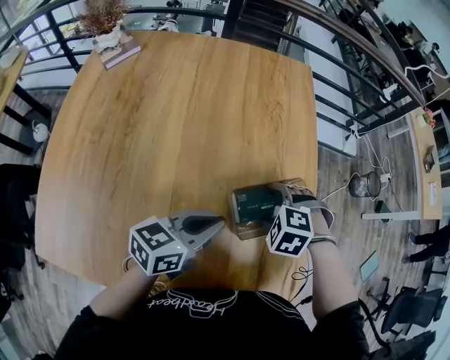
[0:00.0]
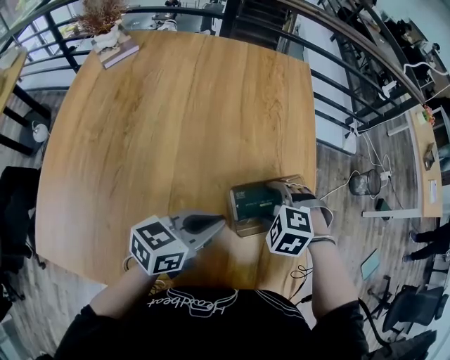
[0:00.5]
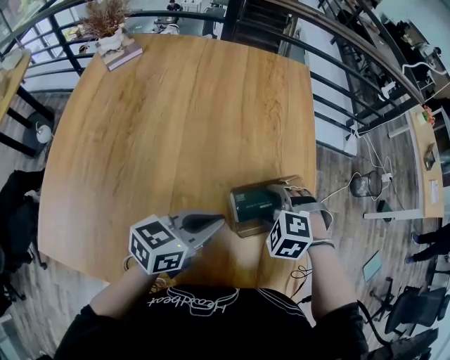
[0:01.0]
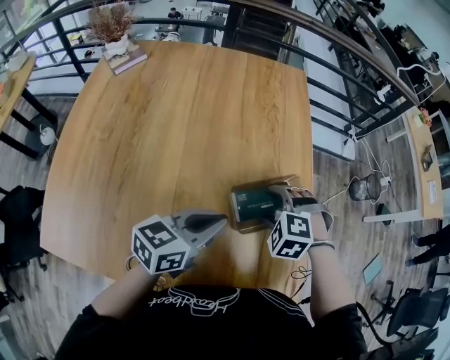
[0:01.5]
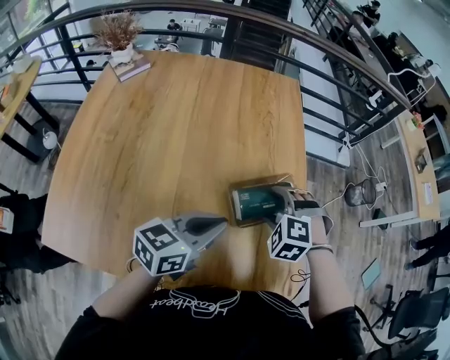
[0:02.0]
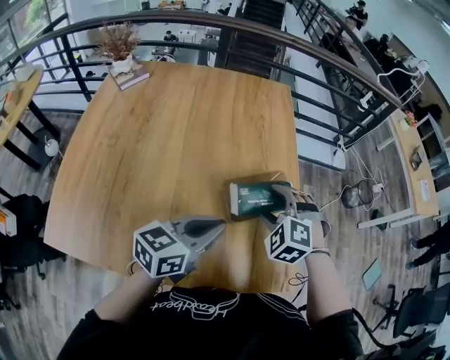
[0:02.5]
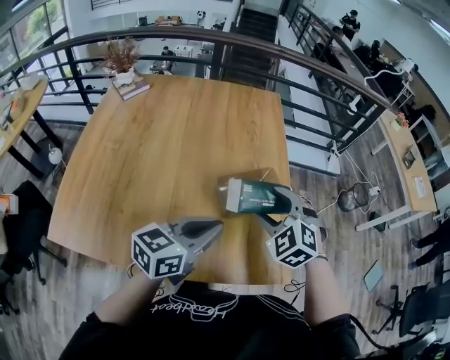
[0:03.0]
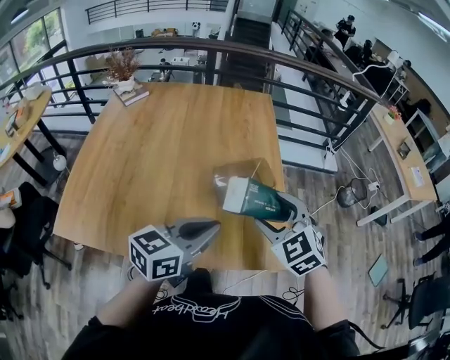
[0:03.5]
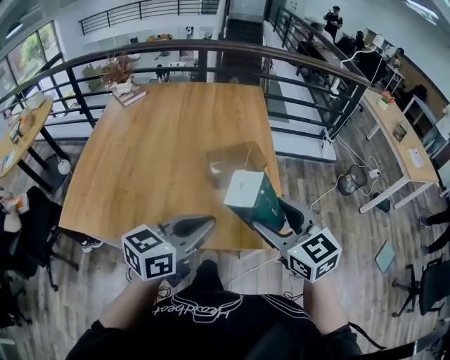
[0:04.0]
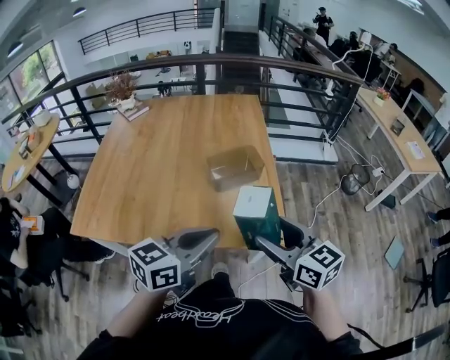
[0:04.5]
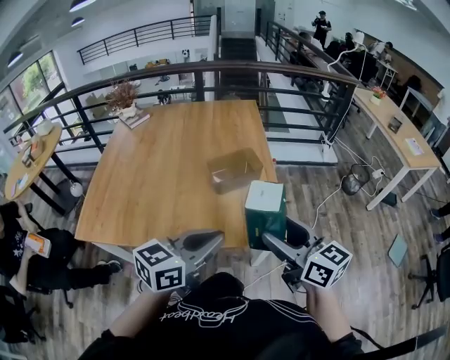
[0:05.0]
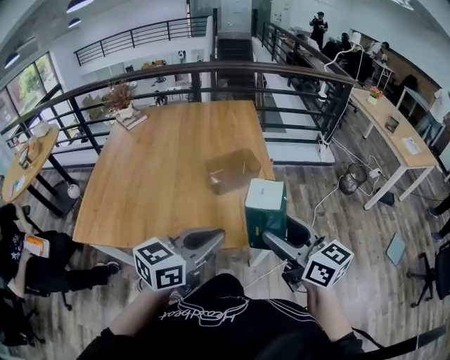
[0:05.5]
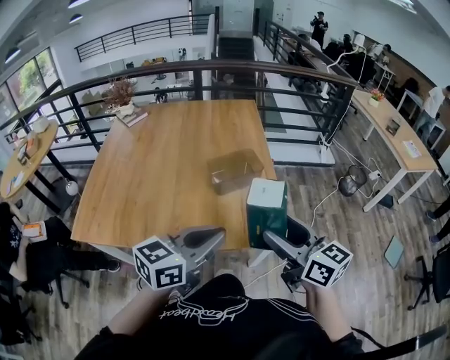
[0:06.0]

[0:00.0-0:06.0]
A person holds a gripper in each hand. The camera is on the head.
0:00.0 to 0:02.0: The left gripper ends up some 10 cm from where it was. The right gripper is displaced upward by roughly 5 cm.
0:02.0 to 0:04.0: The right gripper heads backward, upward and to the right, covering approximately 35 cm, and angles its fingers upward, by about 40 degrees. Meanwhile the left gripper shifts about 30 cm backward, to the right and upward.
0:04.0 to 0:06.0: The two grippers go about 5 cm backward. The right gripper turns by about 30 degrees.
